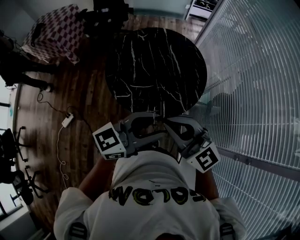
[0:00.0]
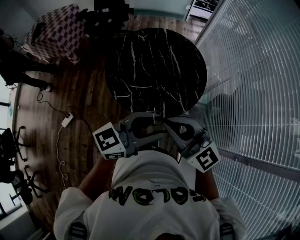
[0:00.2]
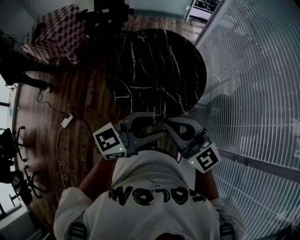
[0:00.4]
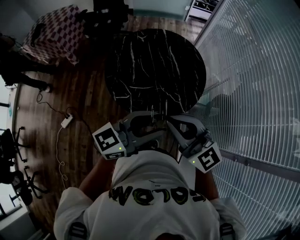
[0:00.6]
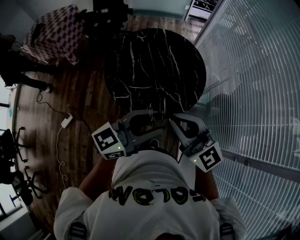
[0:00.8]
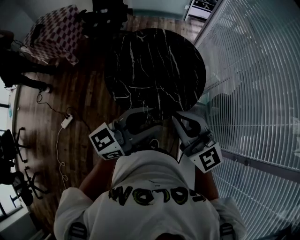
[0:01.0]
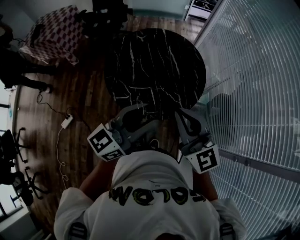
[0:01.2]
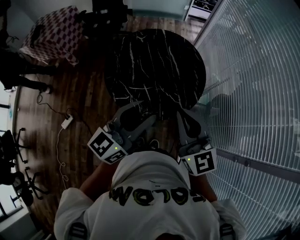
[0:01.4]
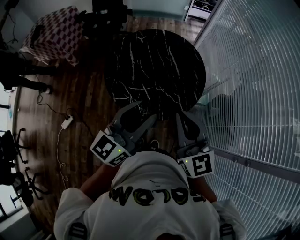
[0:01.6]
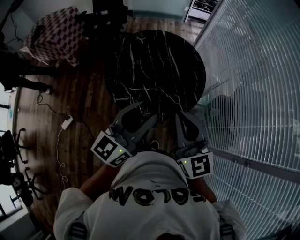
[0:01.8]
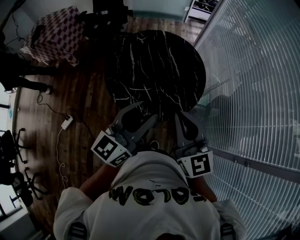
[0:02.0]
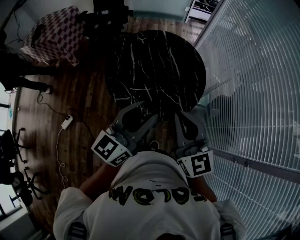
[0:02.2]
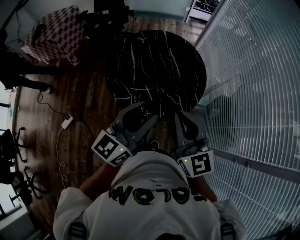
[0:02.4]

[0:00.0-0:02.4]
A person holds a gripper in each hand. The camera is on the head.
0:00.0 to 0:01.2: The right gripper changes place by about 5 cm. The left gripper shifts by some 5 cm.
0:01.2 to 0:02.4: The grippers make only small movements.

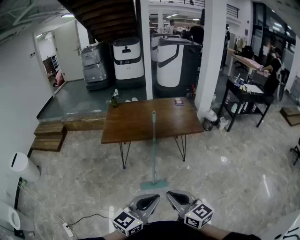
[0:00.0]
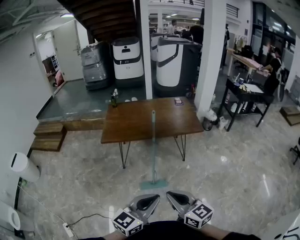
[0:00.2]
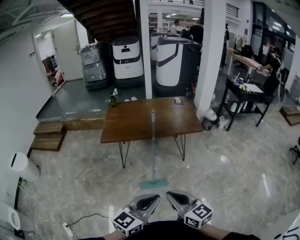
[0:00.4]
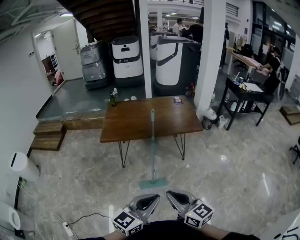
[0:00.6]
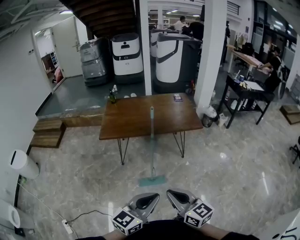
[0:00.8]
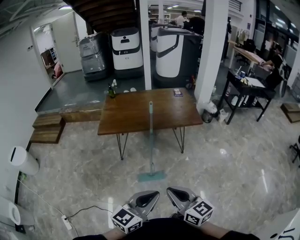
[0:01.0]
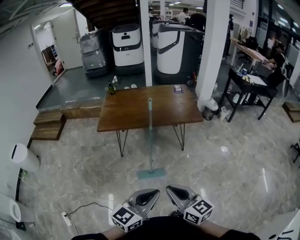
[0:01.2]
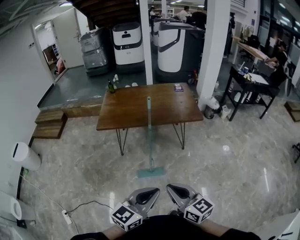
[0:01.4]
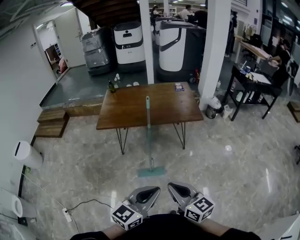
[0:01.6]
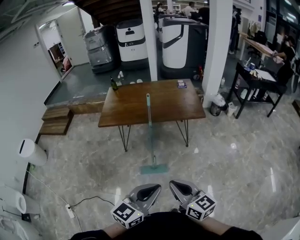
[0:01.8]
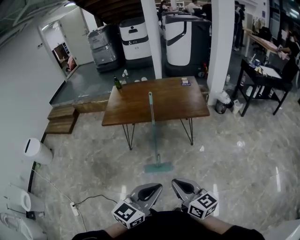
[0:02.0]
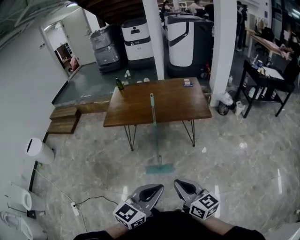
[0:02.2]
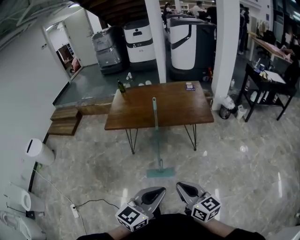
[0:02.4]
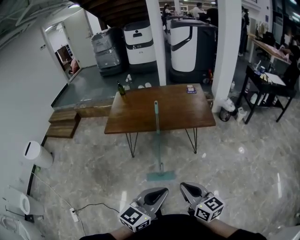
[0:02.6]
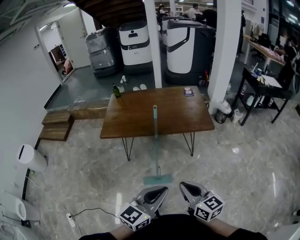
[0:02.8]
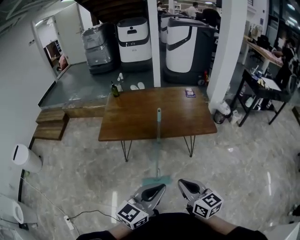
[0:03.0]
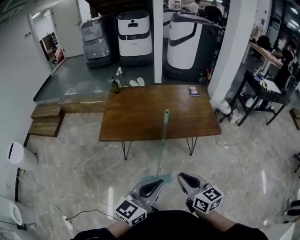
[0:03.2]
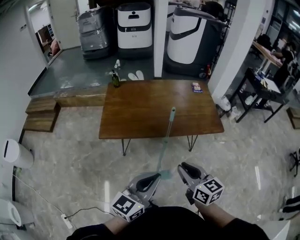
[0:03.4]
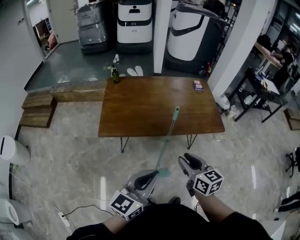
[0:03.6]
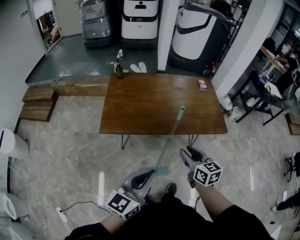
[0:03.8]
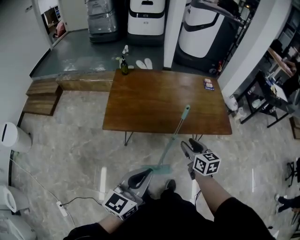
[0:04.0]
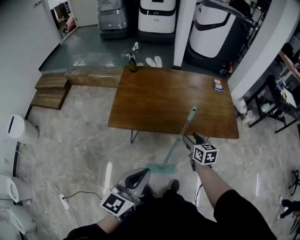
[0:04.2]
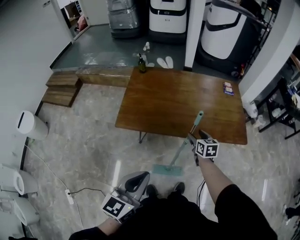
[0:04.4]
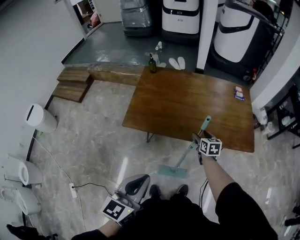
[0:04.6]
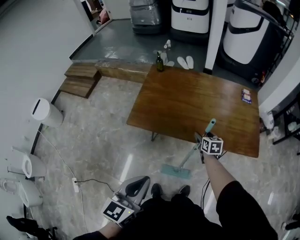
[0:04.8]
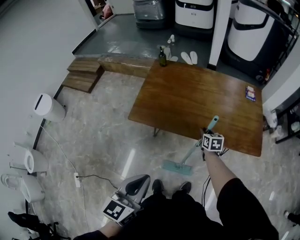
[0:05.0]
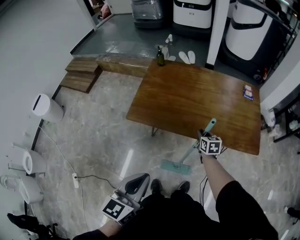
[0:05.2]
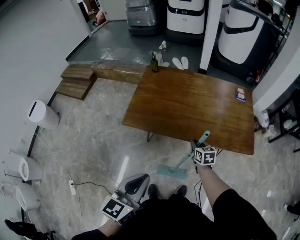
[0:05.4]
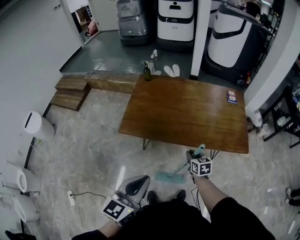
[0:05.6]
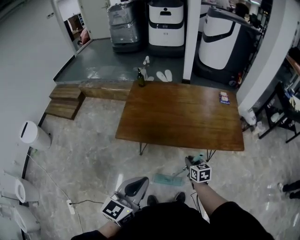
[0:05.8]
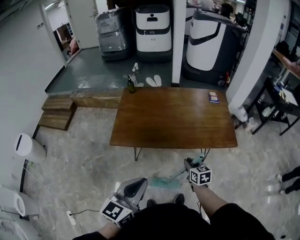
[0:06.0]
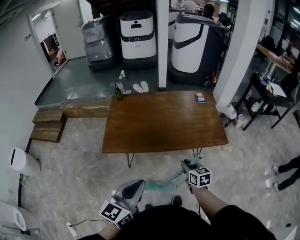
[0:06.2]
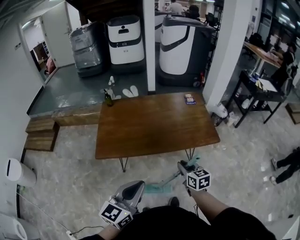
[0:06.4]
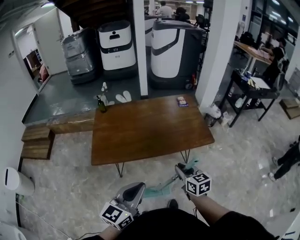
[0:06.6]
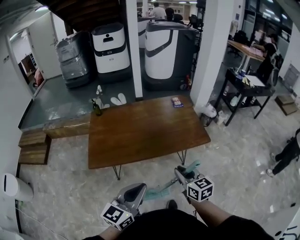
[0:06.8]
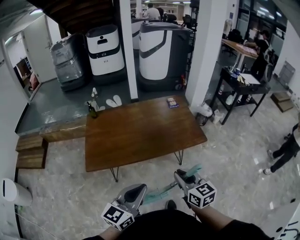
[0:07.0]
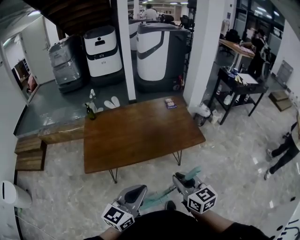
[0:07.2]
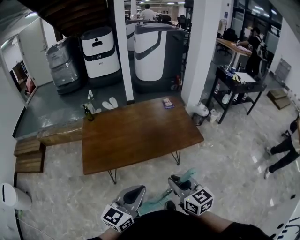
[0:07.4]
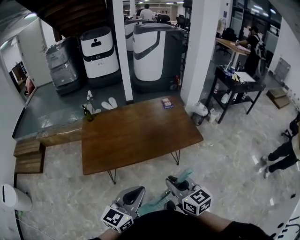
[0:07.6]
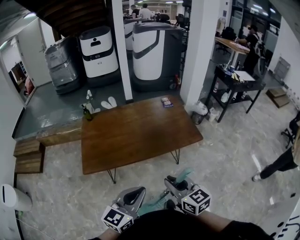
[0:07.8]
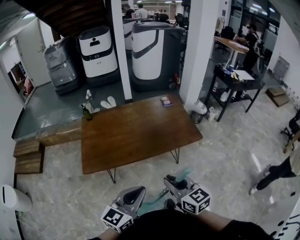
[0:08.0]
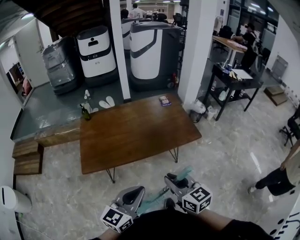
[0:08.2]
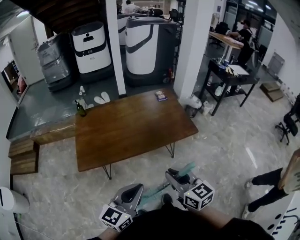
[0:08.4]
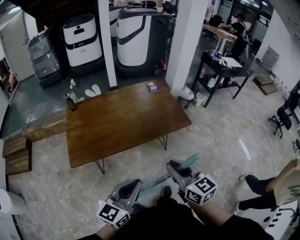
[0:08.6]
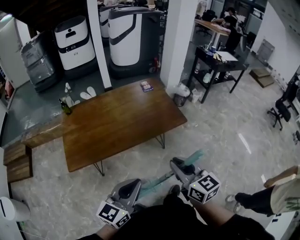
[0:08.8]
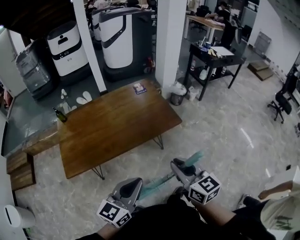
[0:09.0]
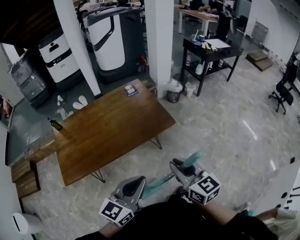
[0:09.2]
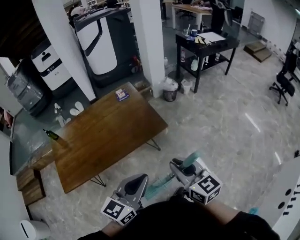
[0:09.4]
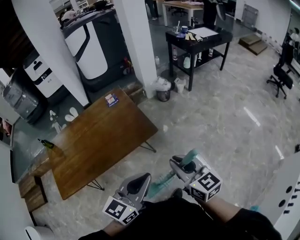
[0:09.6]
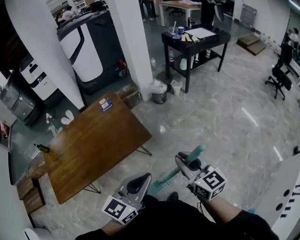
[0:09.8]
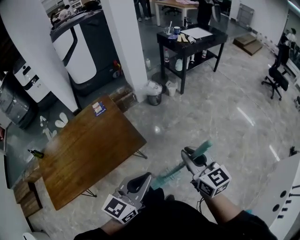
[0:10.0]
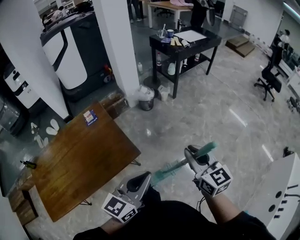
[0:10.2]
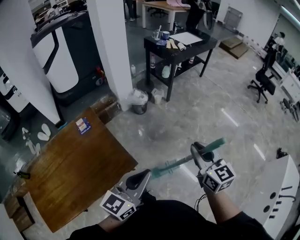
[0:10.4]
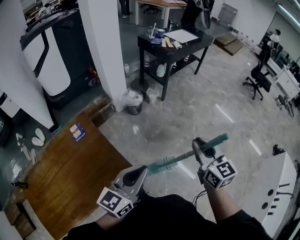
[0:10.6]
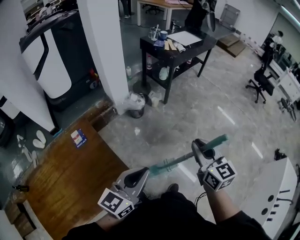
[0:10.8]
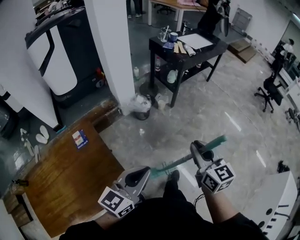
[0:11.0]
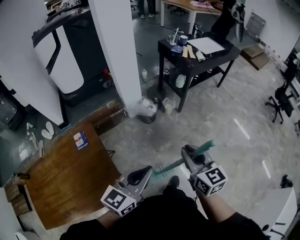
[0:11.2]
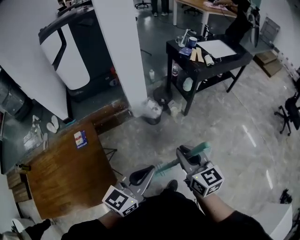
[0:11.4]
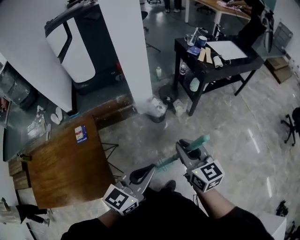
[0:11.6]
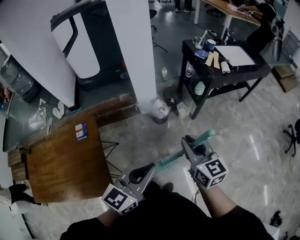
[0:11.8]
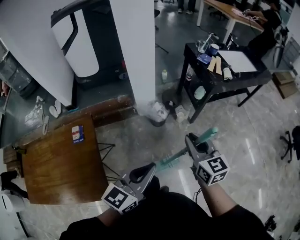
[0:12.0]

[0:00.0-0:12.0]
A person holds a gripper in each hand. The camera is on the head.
0:00.0 to 0:01.6: Both grippers move to the right, about 10 cm.
0:01.6 to 0:03.0: Both grippers travel together forward, about 15 cm.
0:03.0 to 0:04.4: The right gripper travels forward and downward by approximately 40 cm, rotates approximately 20 degrees, and opens; the left gripper shifts some 25 cm to the left and forward, and swivels some 20 degrees.
0:04.4 to 0:06.0: The right gripper shifts roughly 10 cm backward, and closes.
0:06.0 to 0:07.6: The right gripper goes approximately 25 cm upward and backward, and turns by approximately 20 degrees. Meanwhile the left gripper heads to the right, covering about 10 cm, and turns by roughly 20 degrees.
0:07.6 to 0:09.0: The two grippers go roughly 10 cm to the right.
0:09.0 to 0:10.4: The pair of grippers is taken forward and to the right, approximately 50 cm. The left gripper turns by some 20 degrees; the right gripper rotates roughly 30 degrees.
0:10.4 to 0:12.0: The left gripper changes place by about 40 cm, and swivels some 20 degrees. The right gripper shifts by about 40 cm, and changes its angle by some 20 degrees.

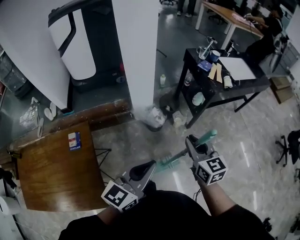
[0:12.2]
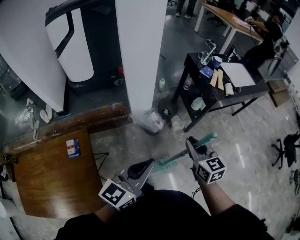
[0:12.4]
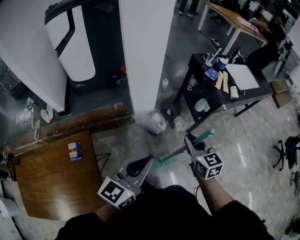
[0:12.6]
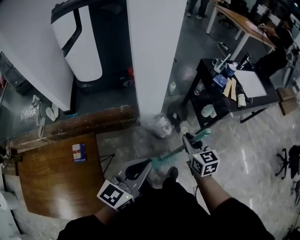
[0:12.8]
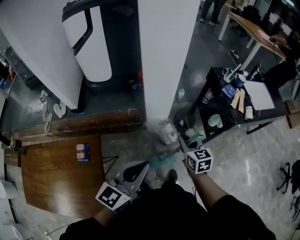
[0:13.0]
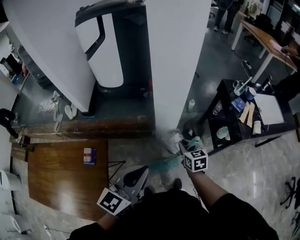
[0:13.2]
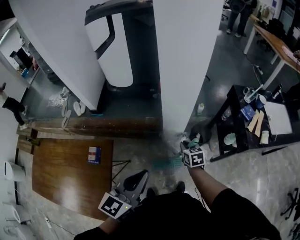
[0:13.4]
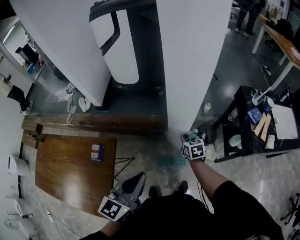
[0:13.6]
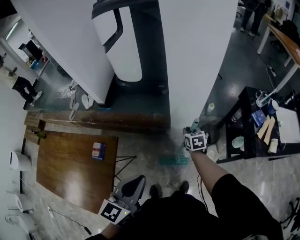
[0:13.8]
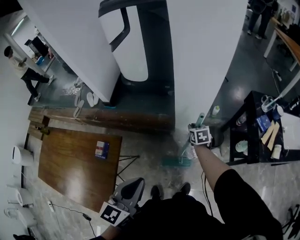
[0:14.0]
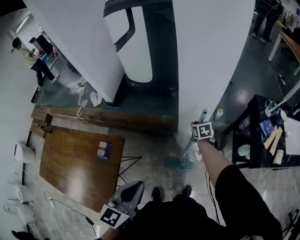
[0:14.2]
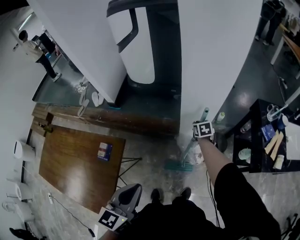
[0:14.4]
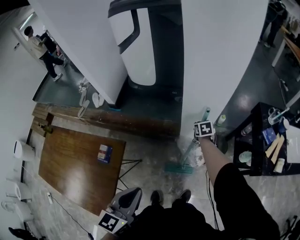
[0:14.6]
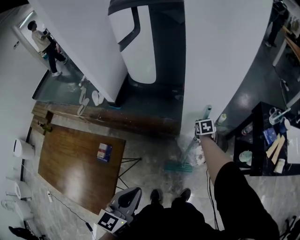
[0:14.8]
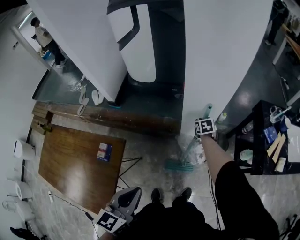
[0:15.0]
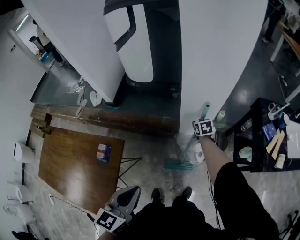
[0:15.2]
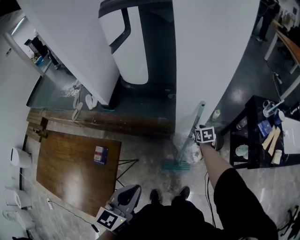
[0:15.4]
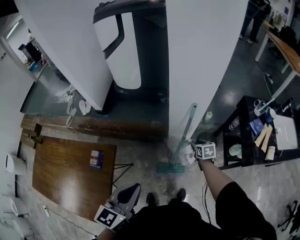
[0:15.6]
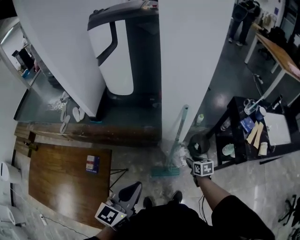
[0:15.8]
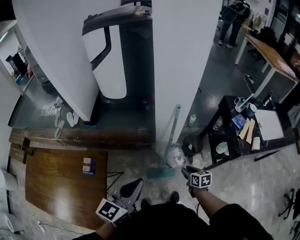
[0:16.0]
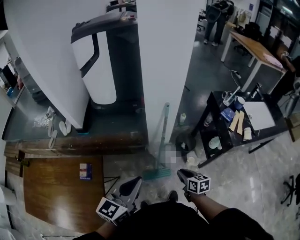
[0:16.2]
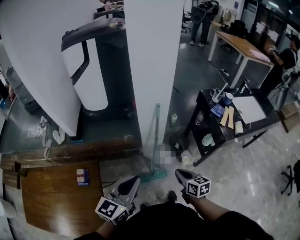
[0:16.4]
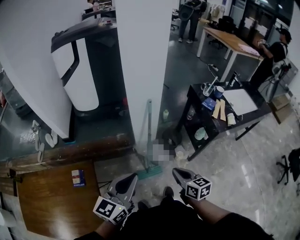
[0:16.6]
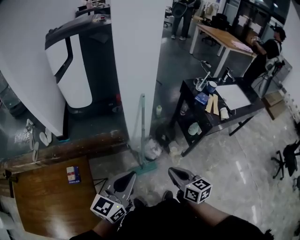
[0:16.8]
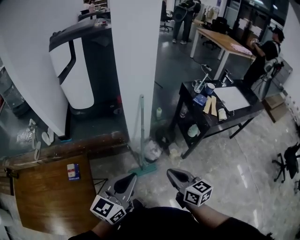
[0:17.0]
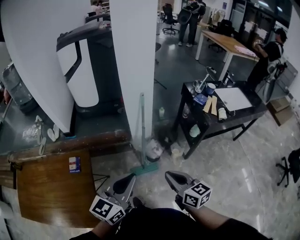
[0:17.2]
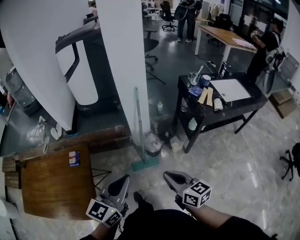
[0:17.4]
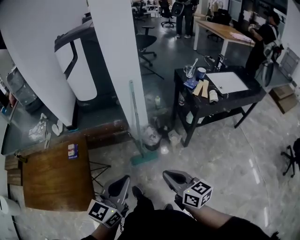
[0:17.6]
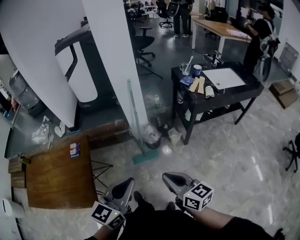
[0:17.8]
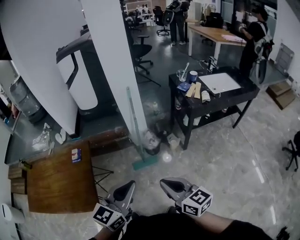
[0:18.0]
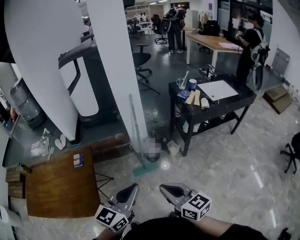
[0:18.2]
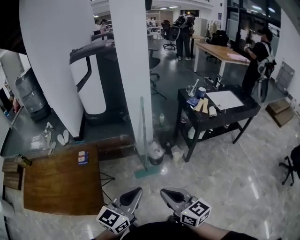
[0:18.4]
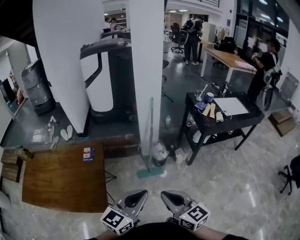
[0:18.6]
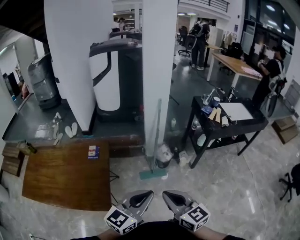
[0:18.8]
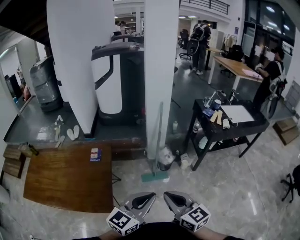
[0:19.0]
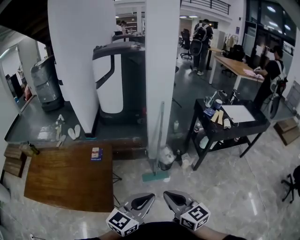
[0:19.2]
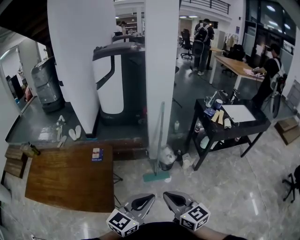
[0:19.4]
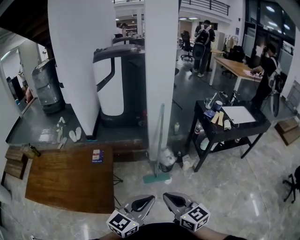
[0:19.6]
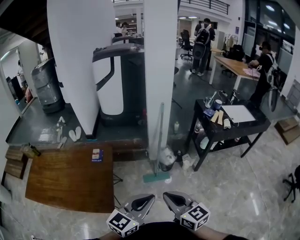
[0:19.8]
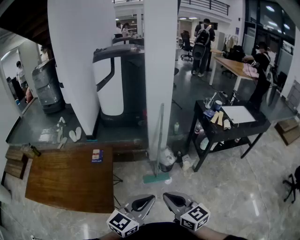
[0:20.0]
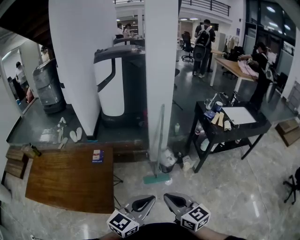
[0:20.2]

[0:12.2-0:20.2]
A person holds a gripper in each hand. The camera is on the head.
0:12.2 to 0:13.8: The right gripper moves some 50 cm, and swivels about 30 degrees. Meanwhile the left gripper changes place by some 20 cm, and changes its angle by about 40 degrees.
0:13.8 to 0:15.4: The right gripper heads forward, covering approximately 5 cm, and opens.
0:15.4 to 0:17.0: The left gripper is displaced backward and to the right by approximately 10 cm, and rotates roughly 30 degrees. The right gripper moves backward and upward, approximately 50 cm, tilts its fingers some 40 degrees upward, and closes.
0:17.0 to 0:18.6: Both grippers travel together backward, approximately 25 cm.
0:18.6 to 0:20.2: The grippers make only small movements.

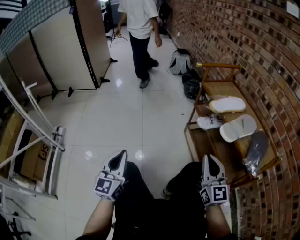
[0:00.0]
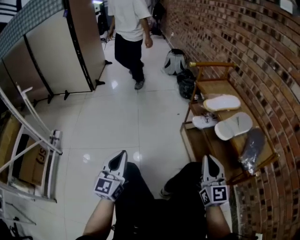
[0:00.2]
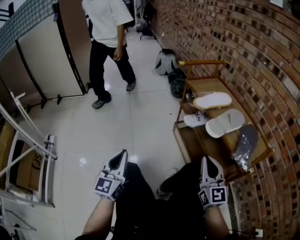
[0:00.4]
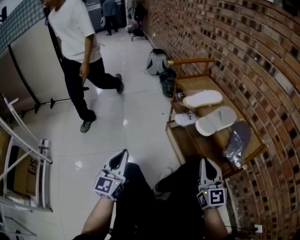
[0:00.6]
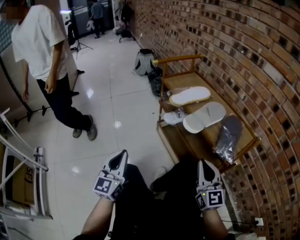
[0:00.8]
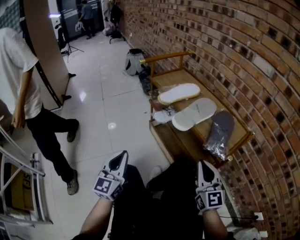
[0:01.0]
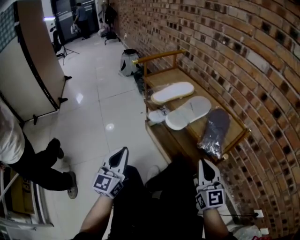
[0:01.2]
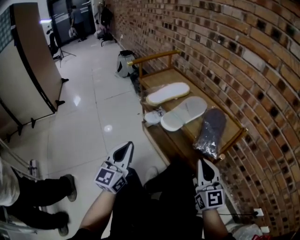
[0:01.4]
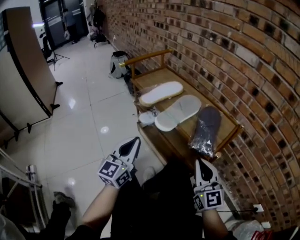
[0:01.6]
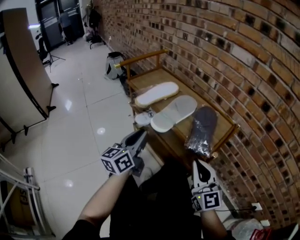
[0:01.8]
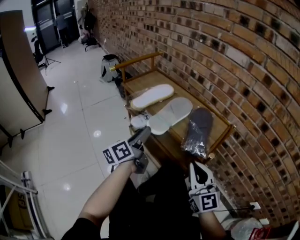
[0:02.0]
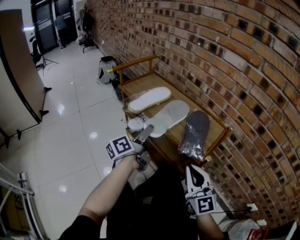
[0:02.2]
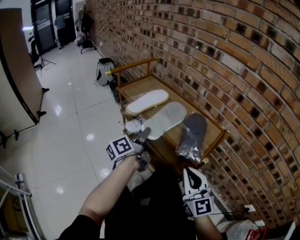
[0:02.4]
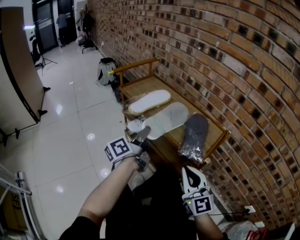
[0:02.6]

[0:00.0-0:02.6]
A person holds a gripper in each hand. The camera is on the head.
0:00.0 to 0:01.2: The grippers both shift to the right by about 20 cm. The left gripper rotates approximately 20 degrees.
0:01.2 to 0:02.6: The left gripper shifts about 20 cm forward and to the right, rotates around the line of its fingers by about 70 degrees, counterclockwise from behind, and opens and closes again.
